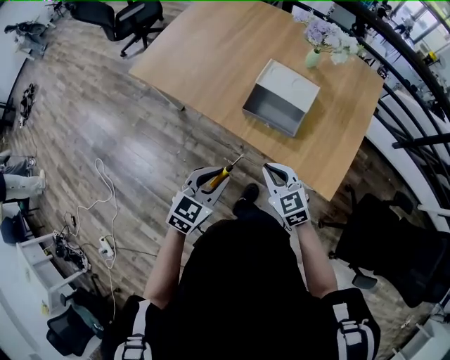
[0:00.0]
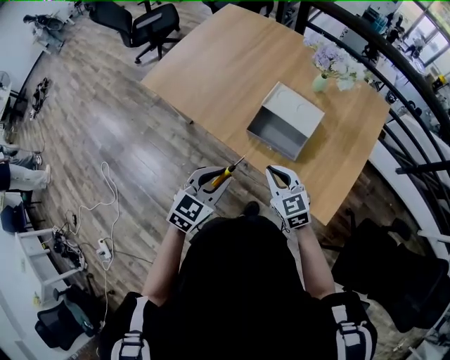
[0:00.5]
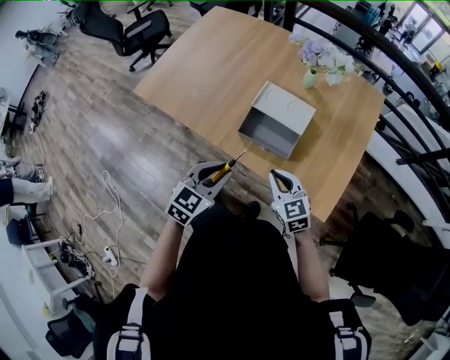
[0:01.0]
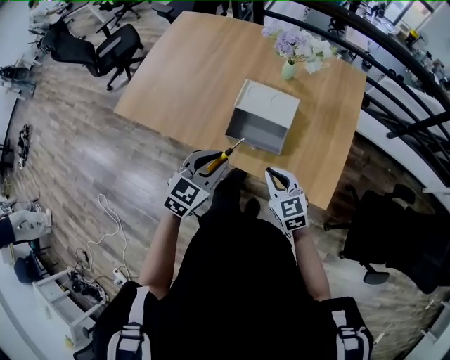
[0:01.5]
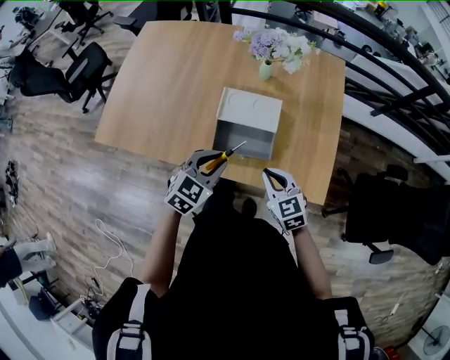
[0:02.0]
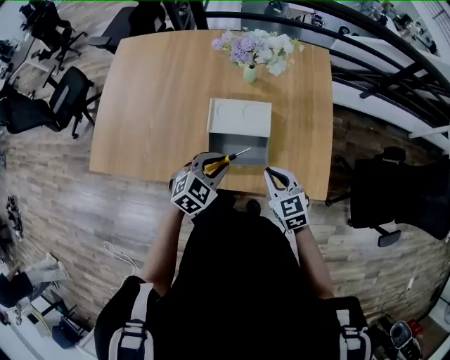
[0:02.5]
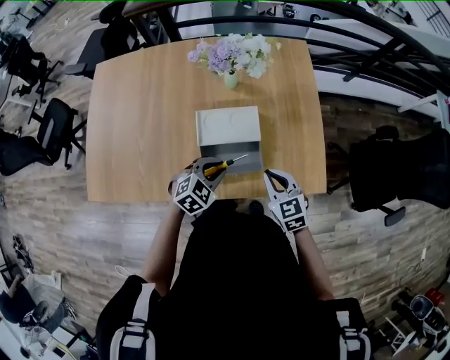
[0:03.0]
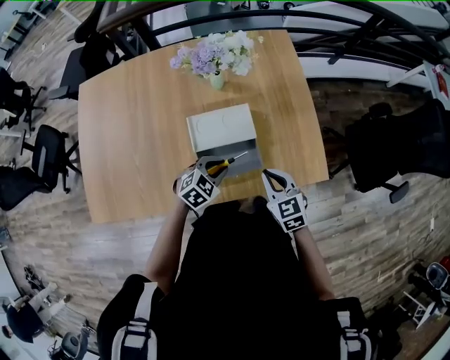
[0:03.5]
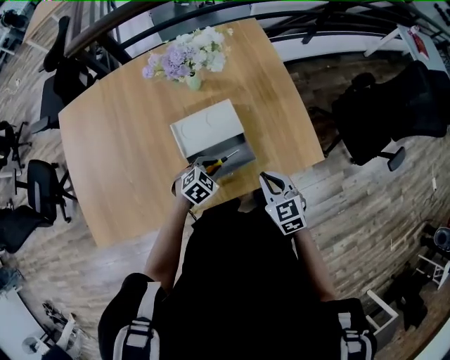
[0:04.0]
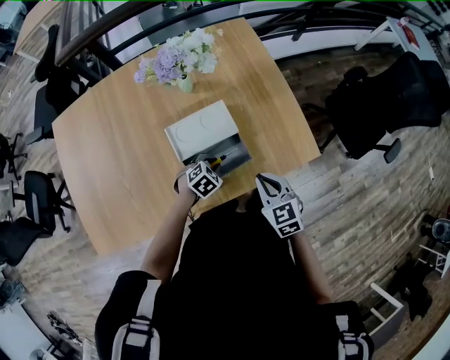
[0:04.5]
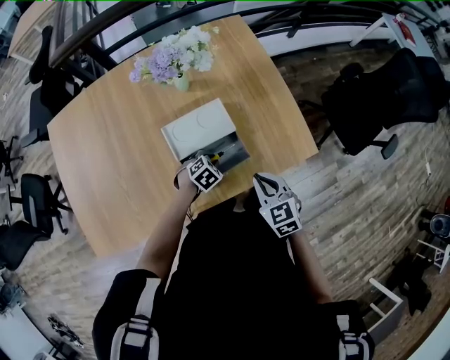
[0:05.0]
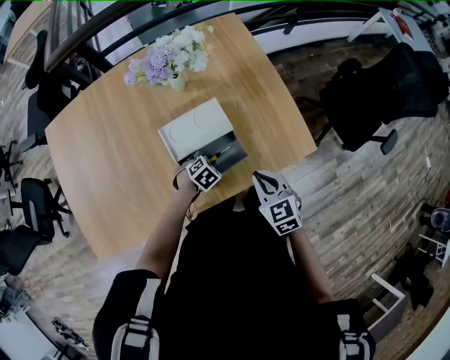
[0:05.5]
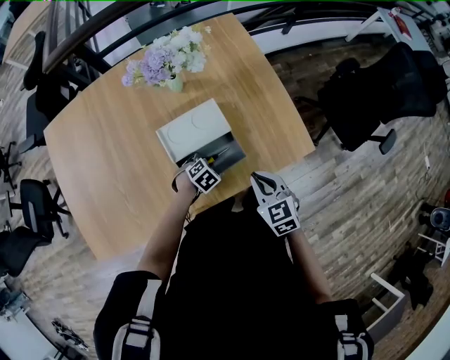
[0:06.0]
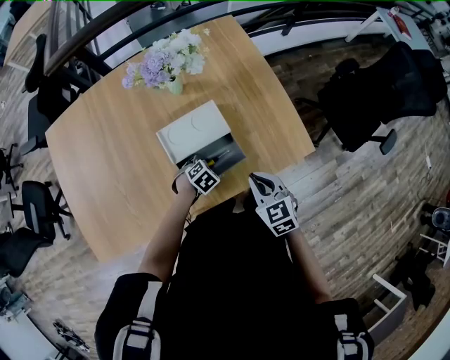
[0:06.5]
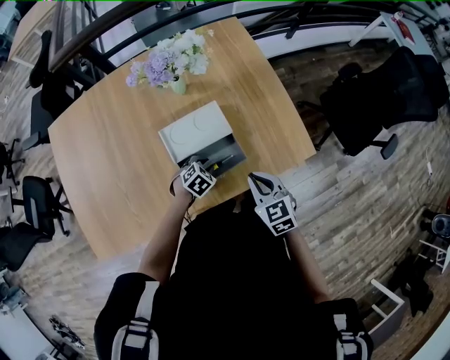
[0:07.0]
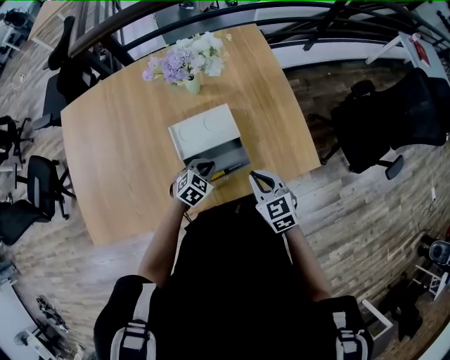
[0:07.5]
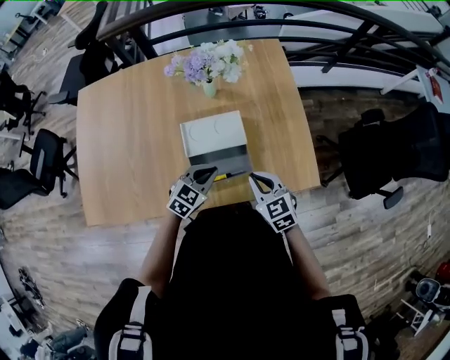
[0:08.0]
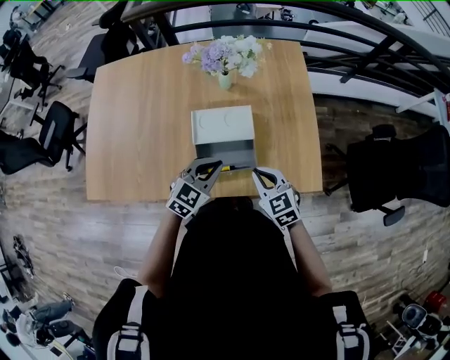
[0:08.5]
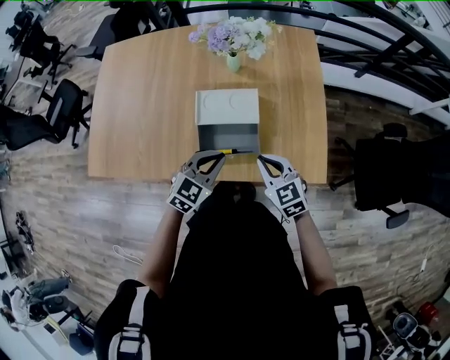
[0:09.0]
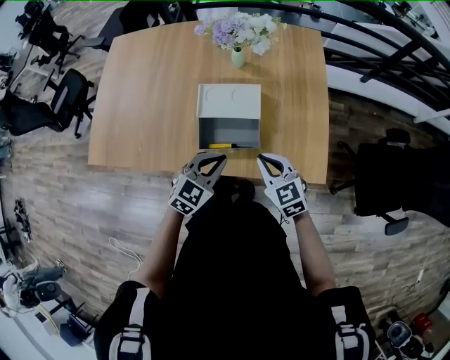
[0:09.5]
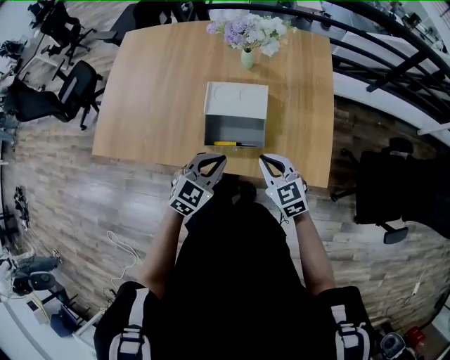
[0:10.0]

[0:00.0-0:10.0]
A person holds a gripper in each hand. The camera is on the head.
0:00.0 to 0:02.0: The left gripper moves forward, roughly 20 cm, and swivels some 30 degrees; the right gripper moves forward and to the right, some 10 cm, and changes its angle by about 20 degrees.
0:02.0 to 0:04.0: The right gripper rotates some 30 degrees. The left gripper travels downward by about 15 cm, and turns by approximately 40 degrees.
0:04.0 to 0:06.0: The left gripper shifts about 10 cm downward.
0:06.0 to 0:08.0: The left gripper goes about 15 cm upward, and tips its fingers upward by some 40 degrees.
0:08.0 to 0:10.0: The left gripper shifts some 10 cm backward and upward.

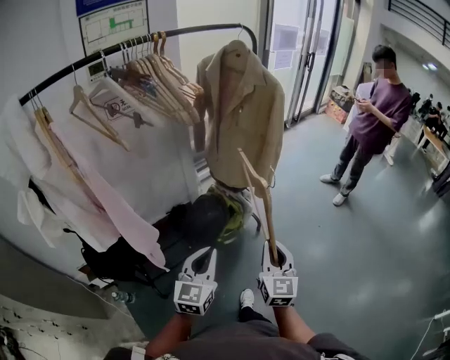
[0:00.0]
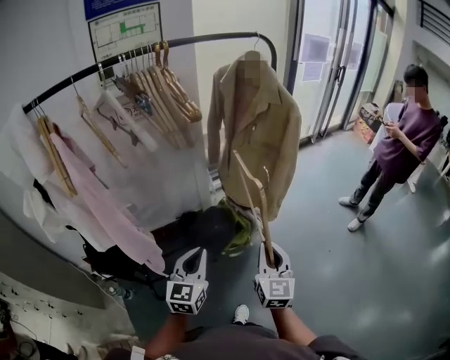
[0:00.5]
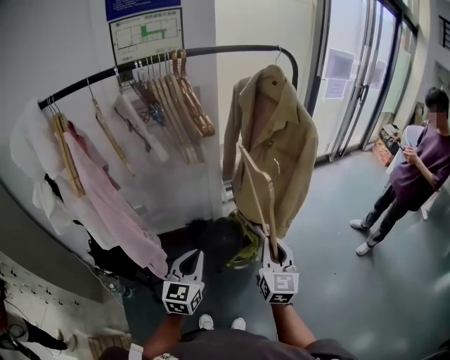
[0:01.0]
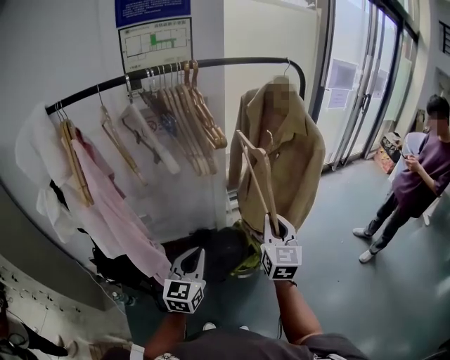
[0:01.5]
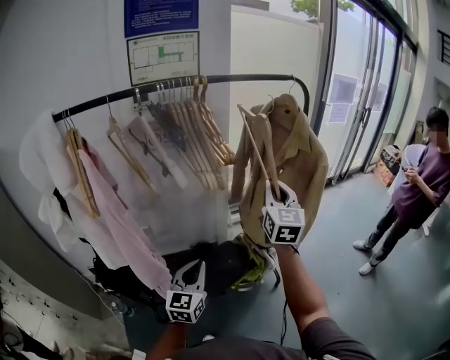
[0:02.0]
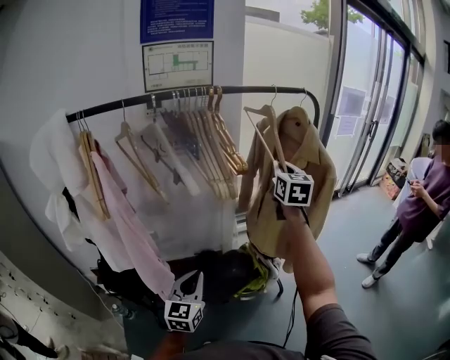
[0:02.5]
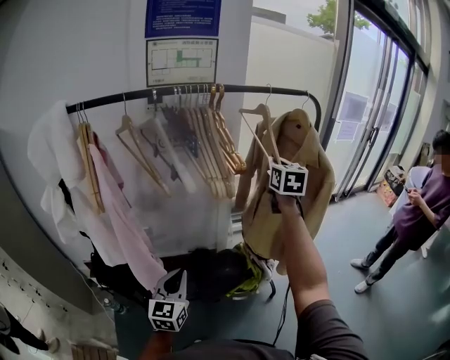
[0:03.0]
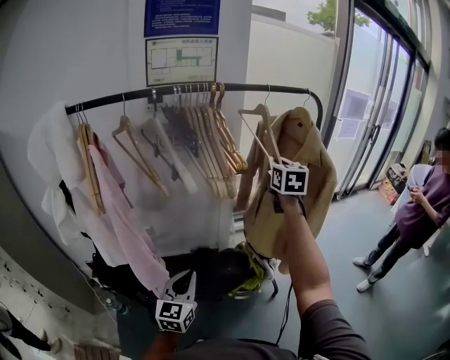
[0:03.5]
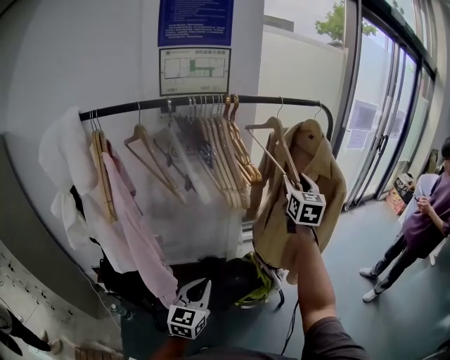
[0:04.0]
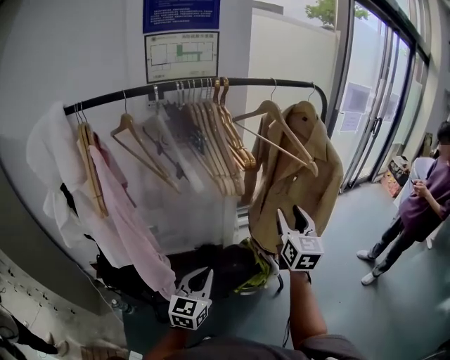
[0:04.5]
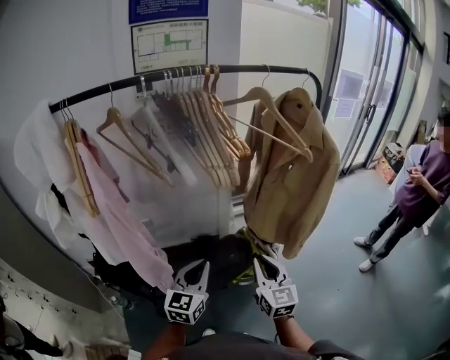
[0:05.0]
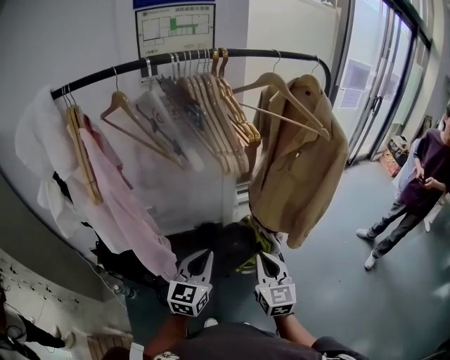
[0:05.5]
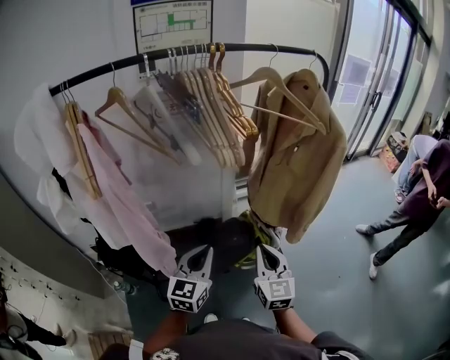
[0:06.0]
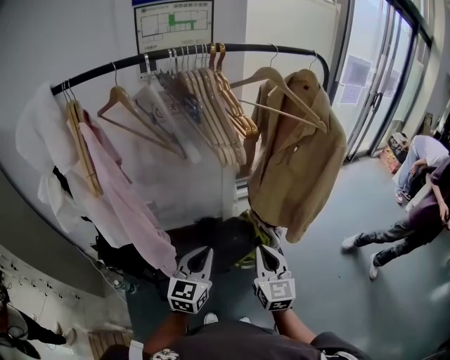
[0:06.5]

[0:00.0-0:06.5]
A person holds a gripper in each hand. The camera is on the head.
0:00.0 to 0:02.0: The right gripper travels forward and upward by some 40 cm, and turns by some 20 degrees, while the left gripper goes approximately 15 cm forward, and swivels approximately 20 degrees.
0:02.0 to 0:04.5: The right gripper goes some 5 cm downward, moves roughly 10 cm forward and comes back, and opens.
0:04.5 to 0:06.5: The right gripper shifts some 20 cm backward, downward and to the left, and closes.

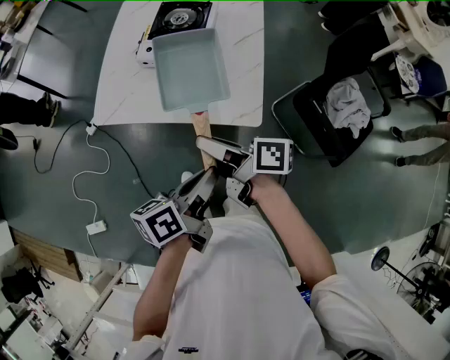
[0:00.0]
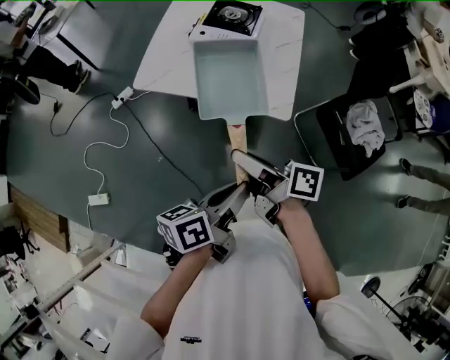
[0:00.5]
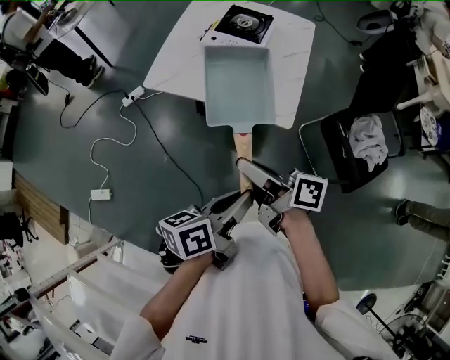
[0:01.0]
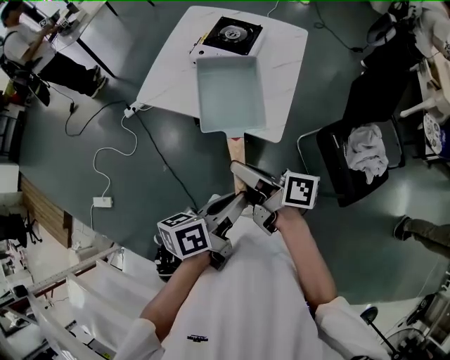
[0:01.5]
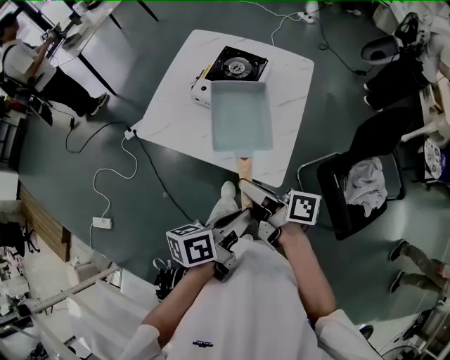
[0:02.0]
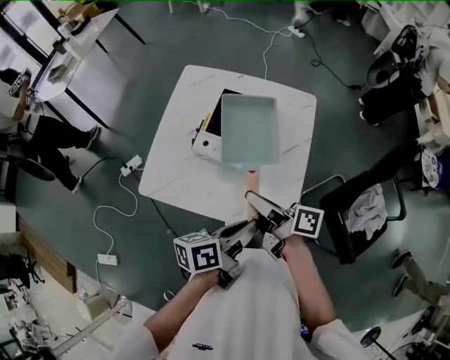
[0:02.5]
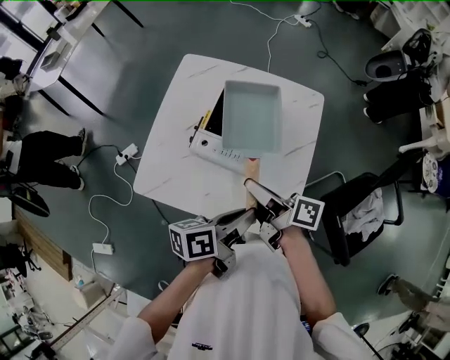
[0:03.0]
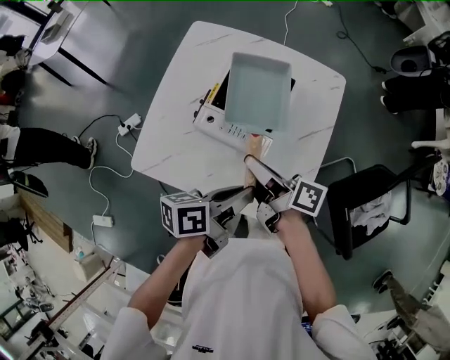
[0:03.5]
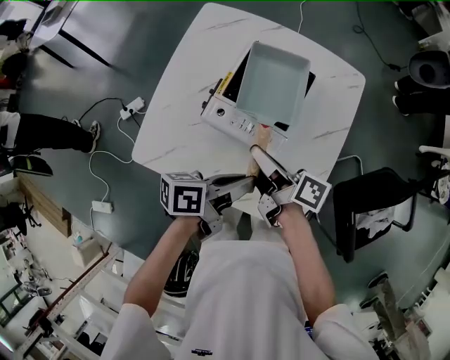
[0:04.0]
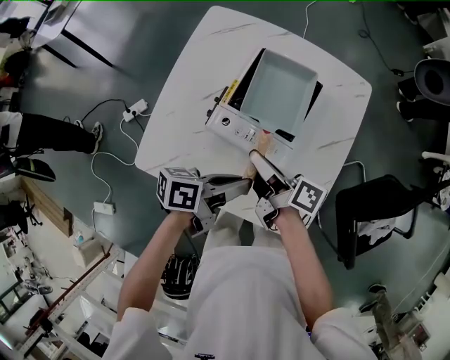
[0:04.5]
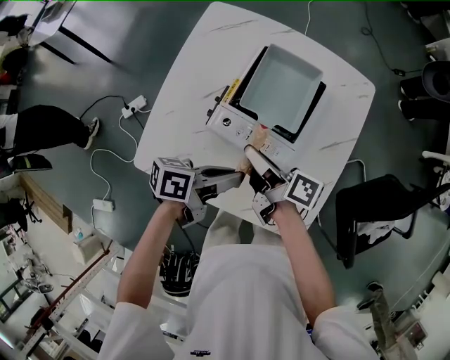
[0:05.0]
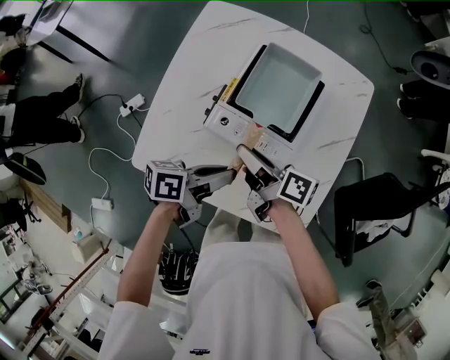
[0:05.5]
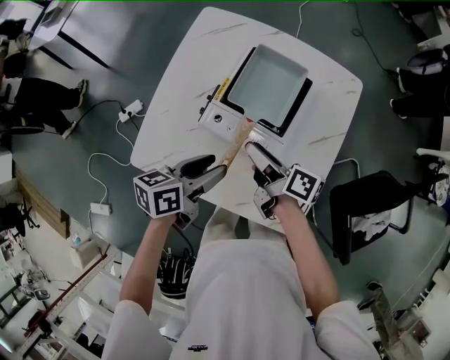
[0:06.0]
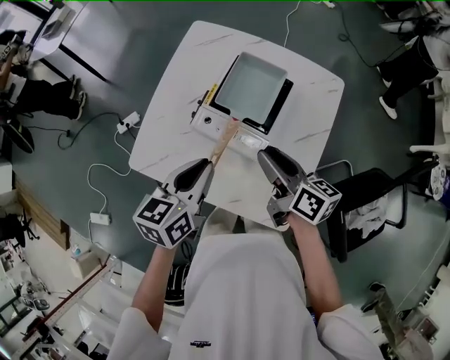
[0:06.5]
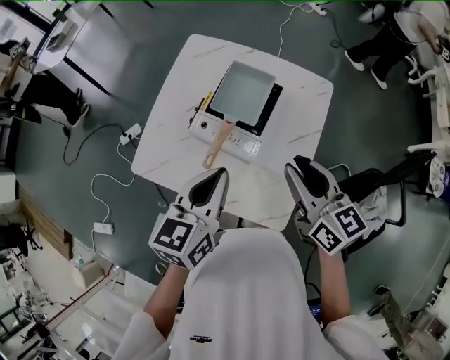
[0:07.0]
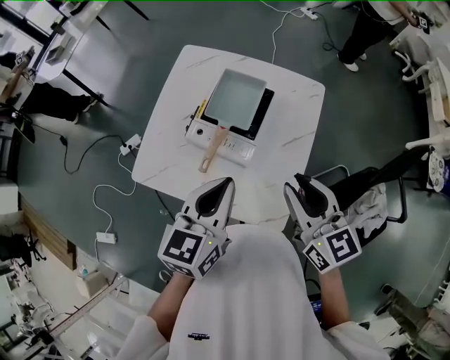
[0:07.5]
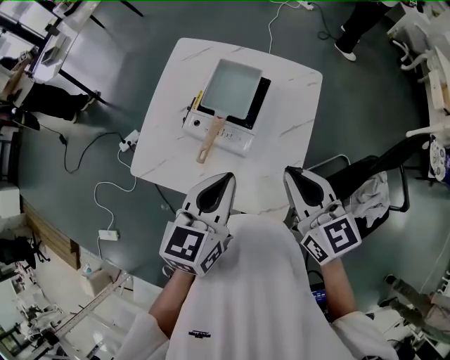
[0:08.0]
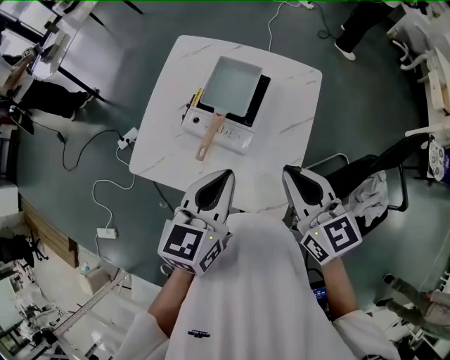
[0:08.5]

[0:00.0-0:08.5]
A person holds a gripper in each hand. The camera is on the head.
0:00.0 to 0:02.0: The left gripper shifts roughly 5 cm to the right, and travels backward and back again, roughly 15 cm each way. The right gripper reaches roughly 15 cm backward, then returns.
0:02.0 to 0:04.0: Both grippers move forward, approximately 30 cm.
0:04.0 to 0:06.5: The right gripper moves to the right and upward, some 10 cm, and turns by some 30 degrees. Meanwhile the left gripper heads upward and to the left, covering roughly 10 cm, turns by approximately 50 degrees, and opens, then closes once more.
0:06.5 to 0:08.5: The left gripper heads upward, to the right and backward, covering about 15 cm. The right gripper shifts approximately 20 cm upward, backward and to the right, turns by about 40 degrees, and closes up.

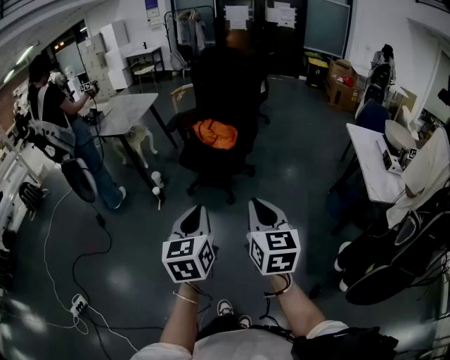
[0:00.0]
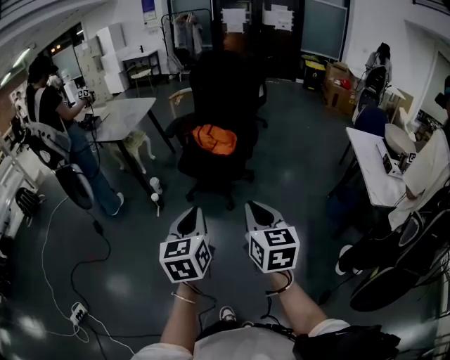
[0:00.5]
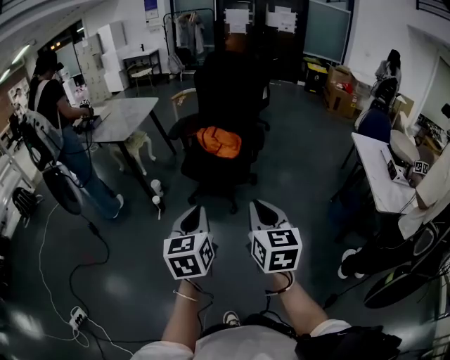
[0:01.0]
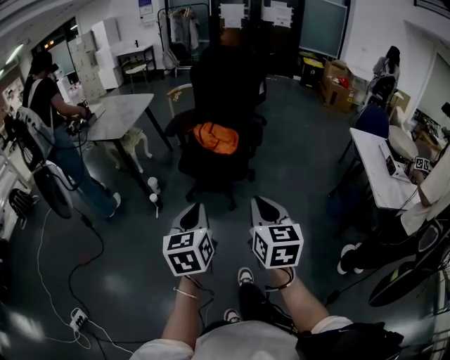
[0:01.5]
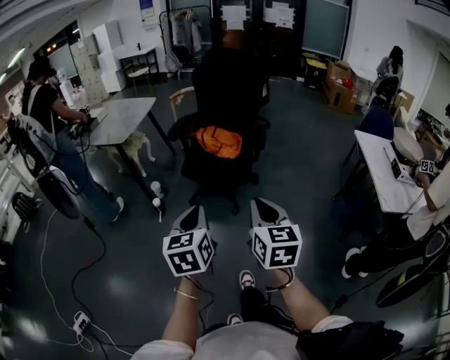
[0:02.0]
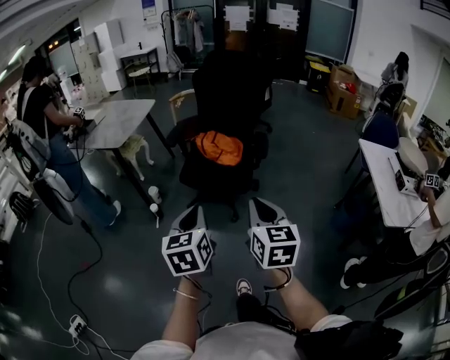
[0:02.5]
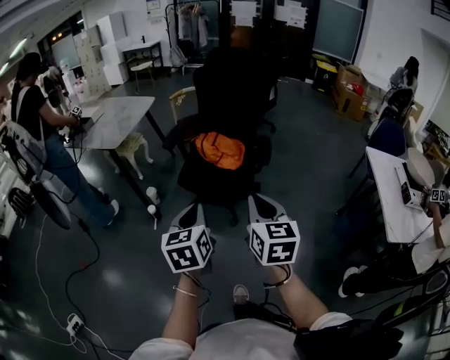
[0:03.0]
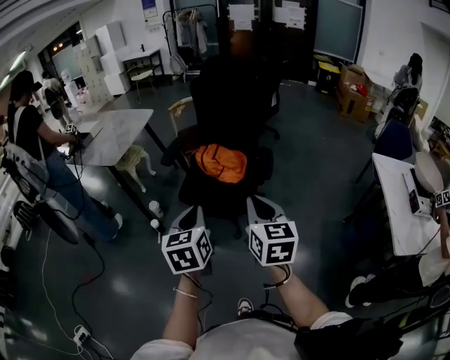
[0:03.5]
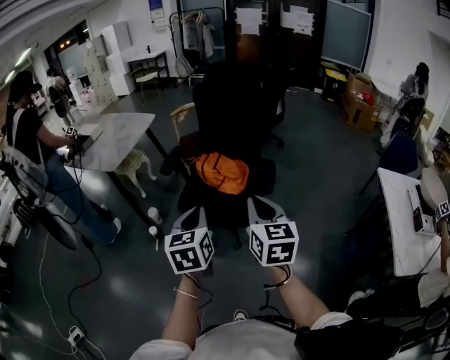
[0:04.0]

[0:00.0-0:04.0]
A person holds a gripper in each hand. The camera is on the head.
0:00.0 to 0:02.0: Both grippers move forward and to the left, some 15 cm.
0:02.0 to 0:04.0: Both grippers move forward, roughly 30 cm.
